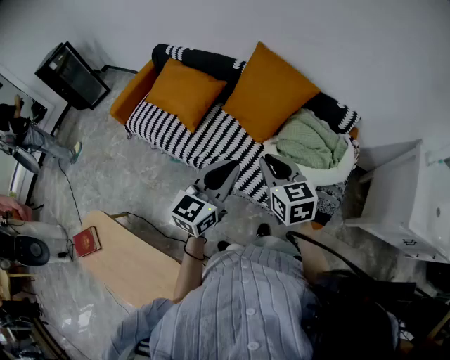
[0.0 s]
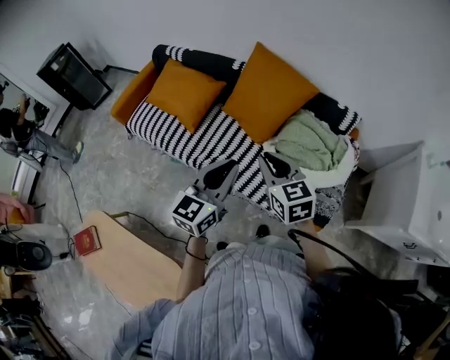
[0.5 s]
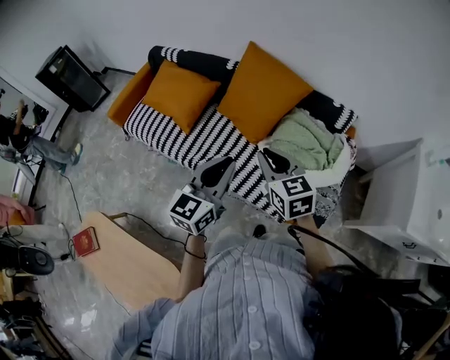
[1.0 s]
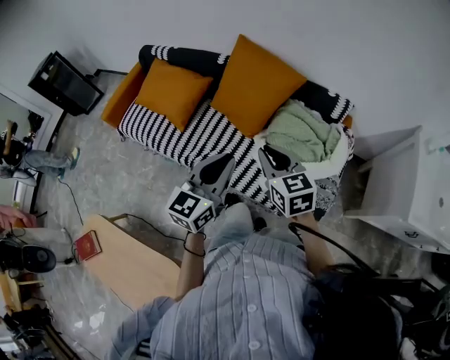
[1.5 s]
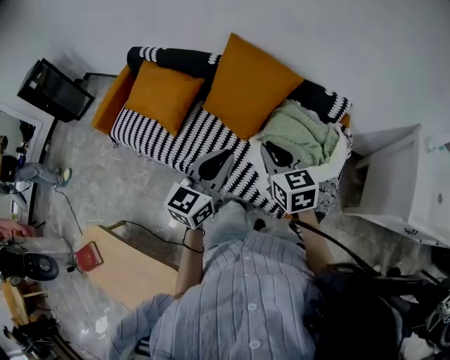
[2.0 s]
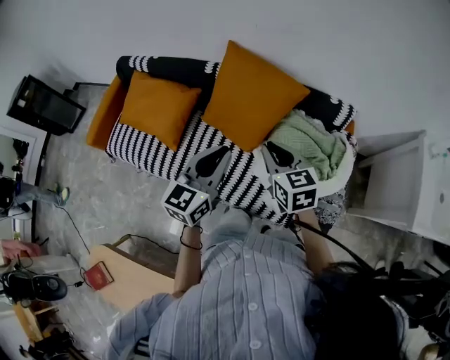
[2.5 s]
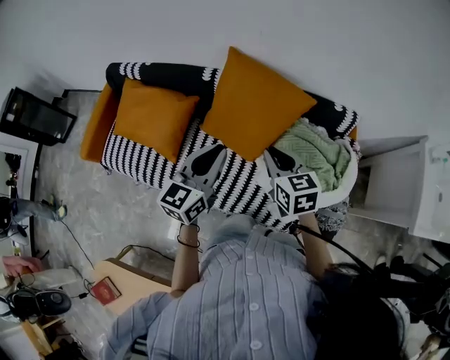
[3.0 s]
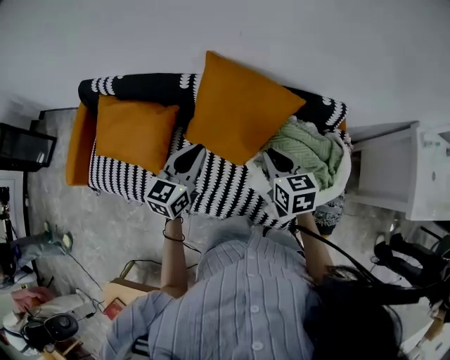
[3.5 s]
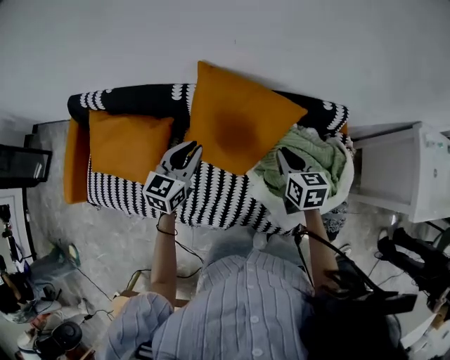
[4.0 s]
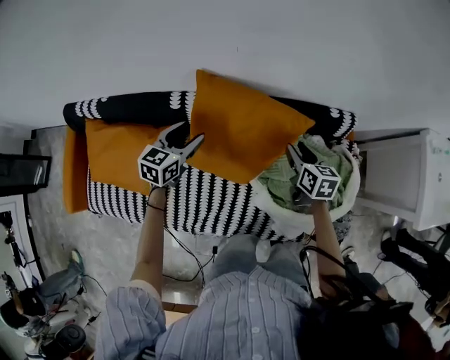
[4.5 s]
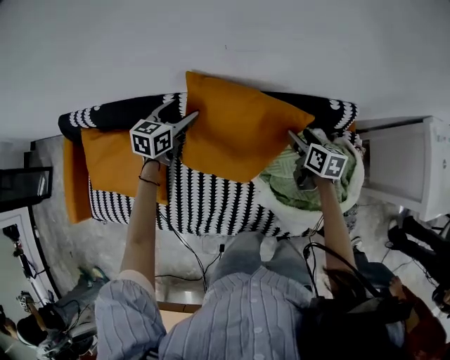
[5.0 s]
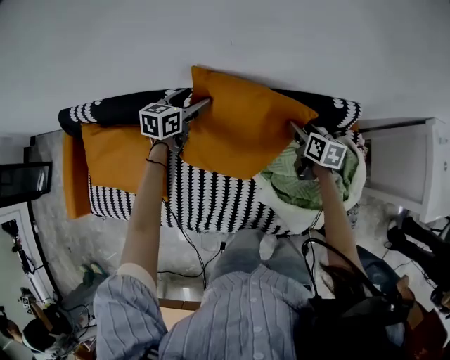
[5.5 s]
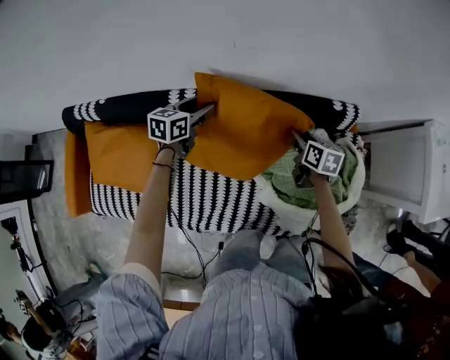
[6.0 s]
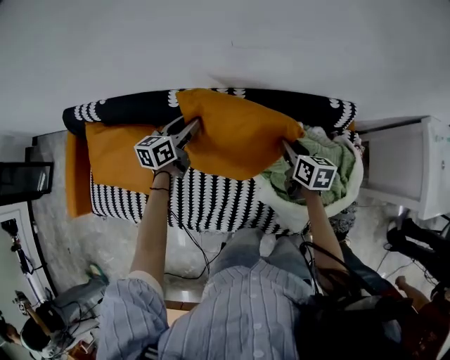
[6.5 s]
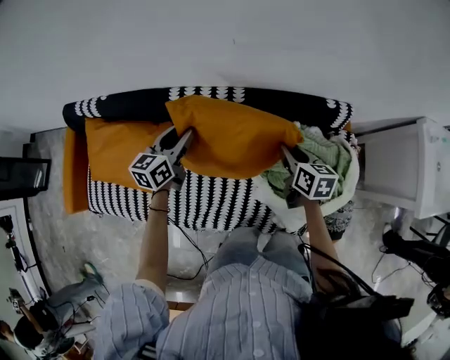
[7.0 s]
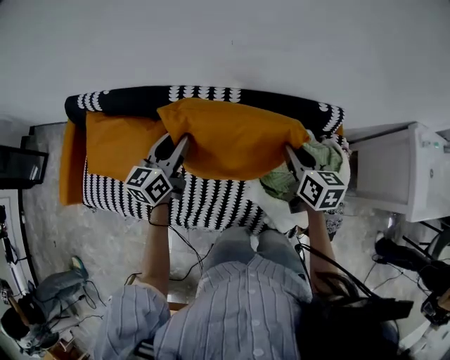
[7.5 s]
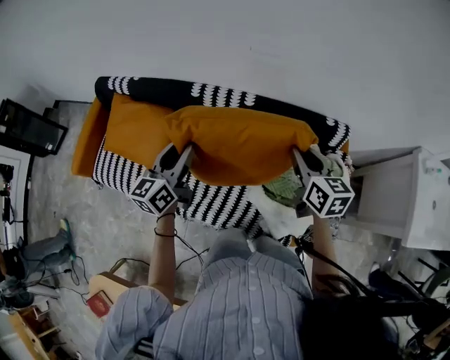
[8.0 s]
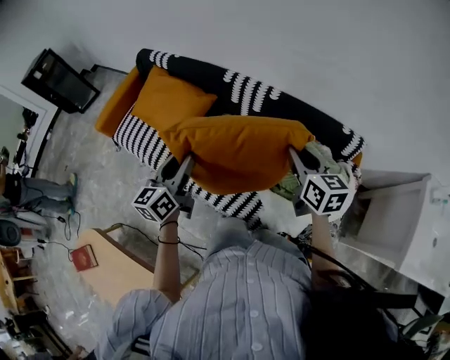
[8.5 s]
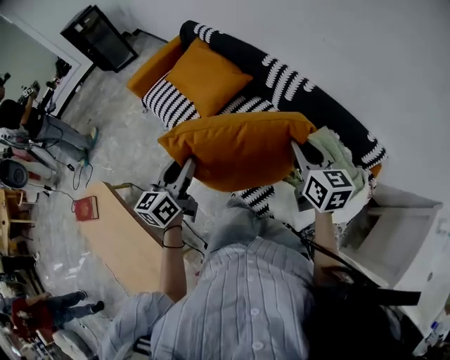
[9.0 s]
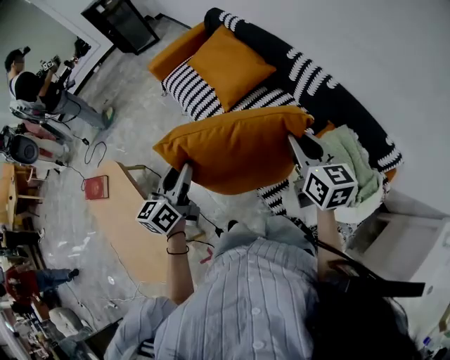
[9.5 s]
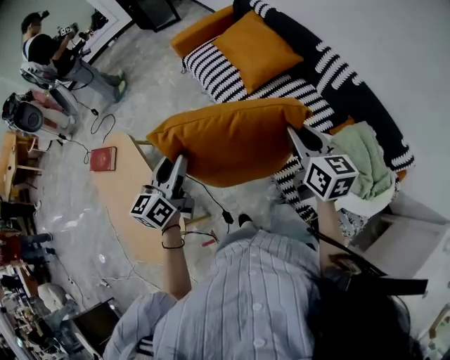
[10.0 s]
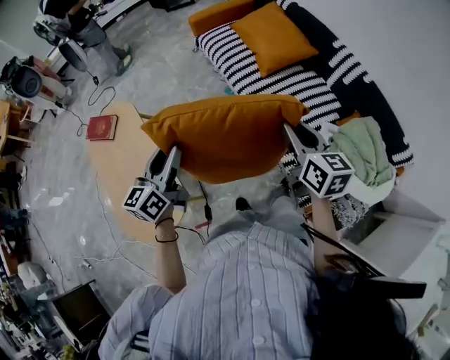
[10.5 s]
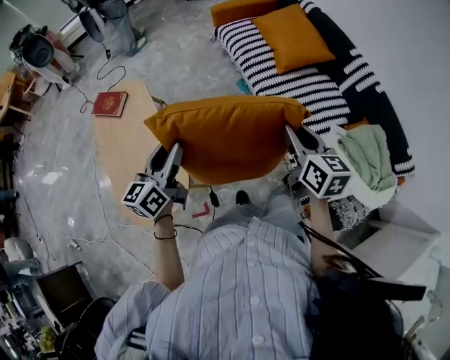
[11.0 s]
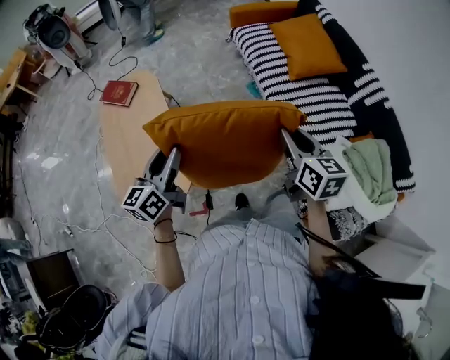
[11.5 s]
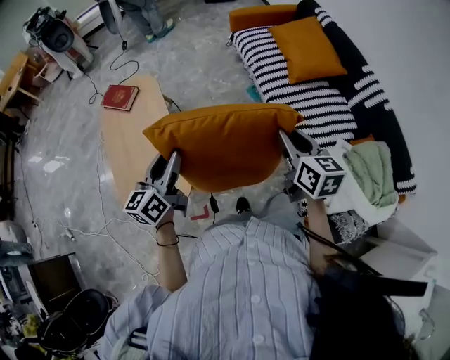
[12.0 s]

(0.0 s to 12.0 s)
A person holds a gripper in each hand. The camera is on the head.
0.0 s - 2.0 s: The grippers both shift forward and to the right by roughly 10 cm.
2.0 s - 4.0 s: The left gripper goes approximately 40 cm forward and to the left, and changes its angle by about 20 degrees. The right gripper is displaced forward and downward by approximately 30 cm, and swivels about 30 degrees.
4.0 s - 6.0 s: The grippers both shift forward and downward by approximately 20 cm. The left gripper opens its fingers; the right gripper swivels approximately 20 degrees, and opens, then closes once more.
6.0 s - 8.0 s: The right gripper travels upward and backward by about 25 cm, and swivels approximately 30 degrees; the left gripper is displaced backward and upward by roughly 35 cm, and swivels roughly 40 degrees.
8.0 s - 10.0 s: The right gripper shifts by roughly 35 cm, and swivels about 50 degrees; the left gripper moves approximately 50 cm, and swivels approximately 50 degrees.
10.0 s - 12.0 s: The left gripper travels to the left and backward by roughly 30 cm, while the right gripper goes roughly 25 cm to the left.

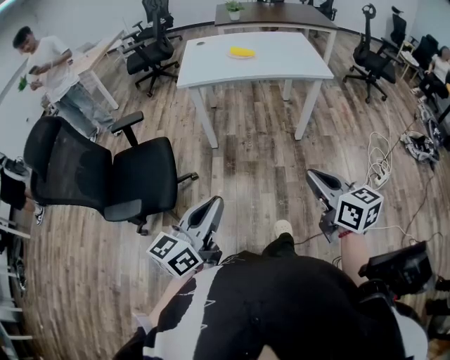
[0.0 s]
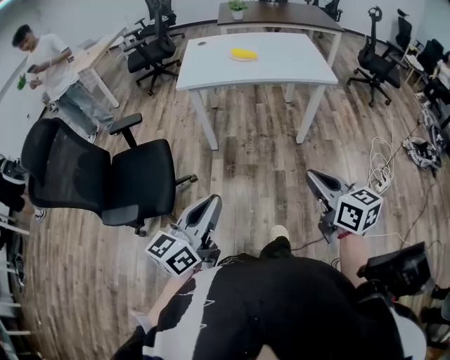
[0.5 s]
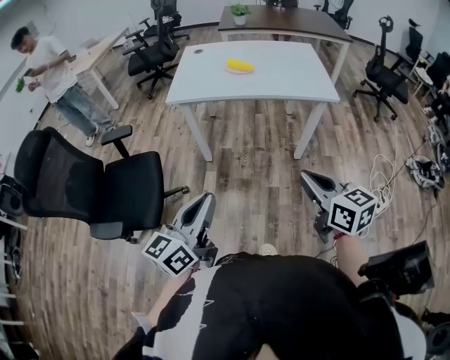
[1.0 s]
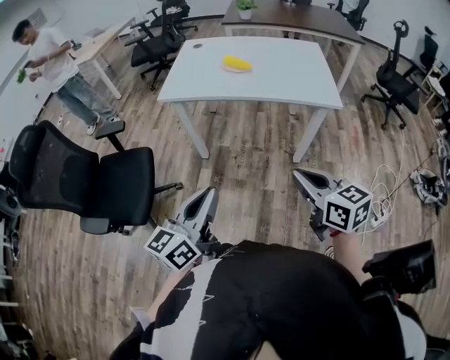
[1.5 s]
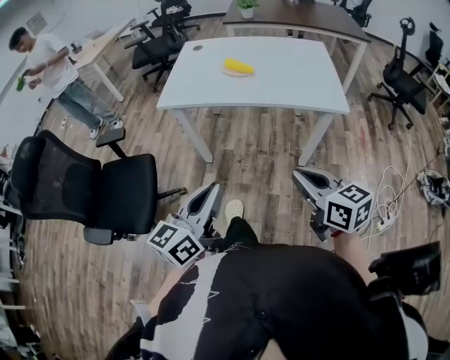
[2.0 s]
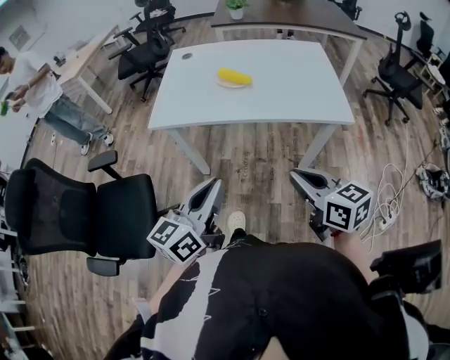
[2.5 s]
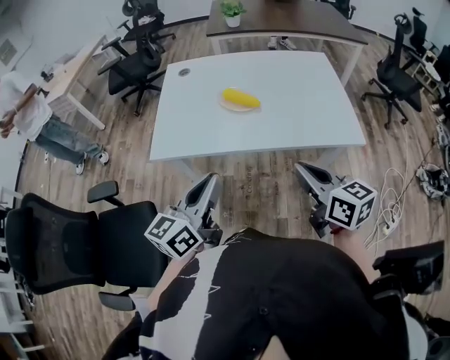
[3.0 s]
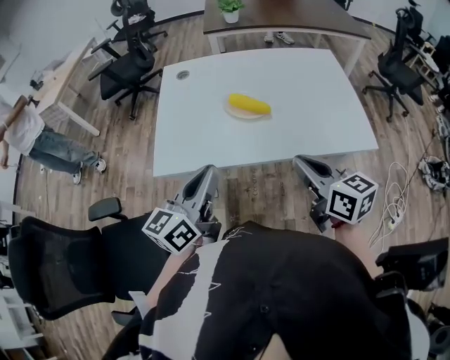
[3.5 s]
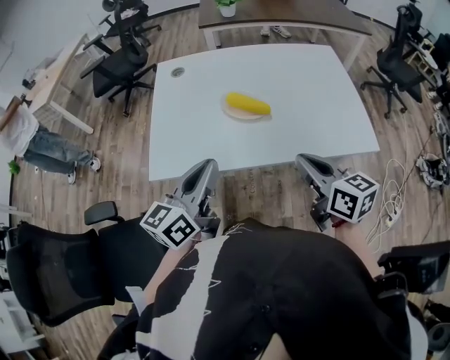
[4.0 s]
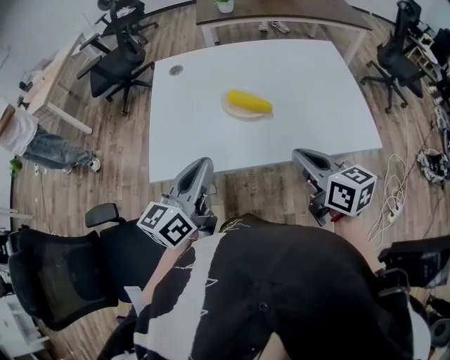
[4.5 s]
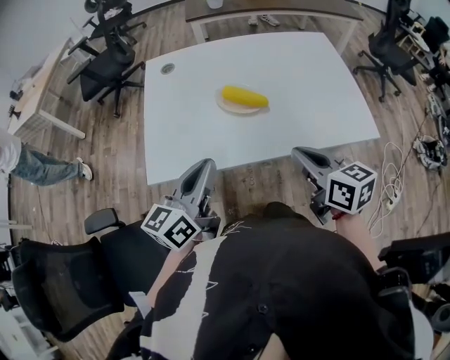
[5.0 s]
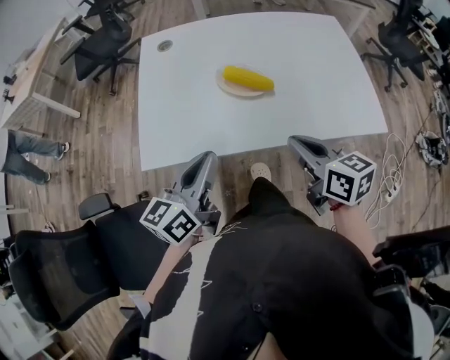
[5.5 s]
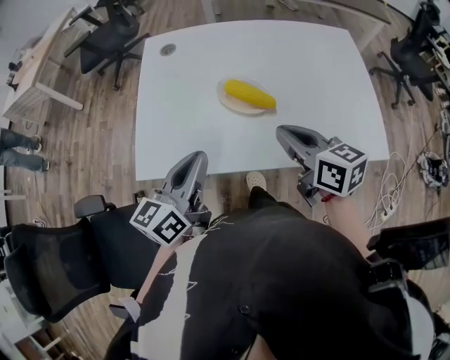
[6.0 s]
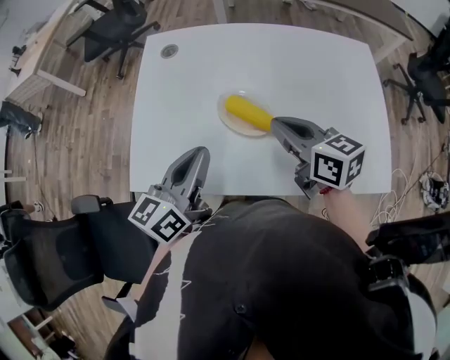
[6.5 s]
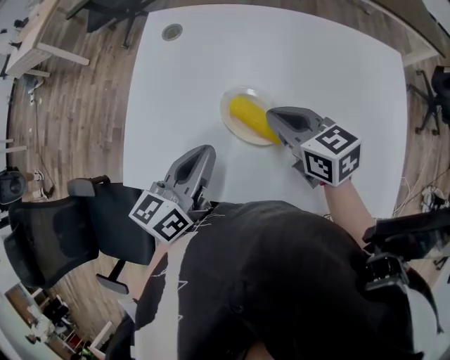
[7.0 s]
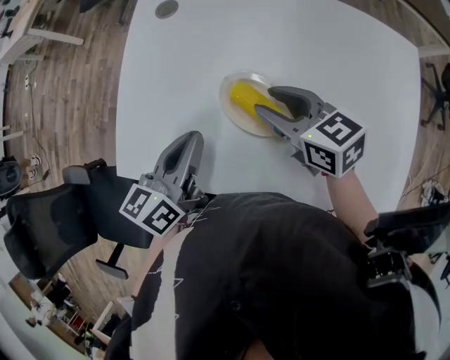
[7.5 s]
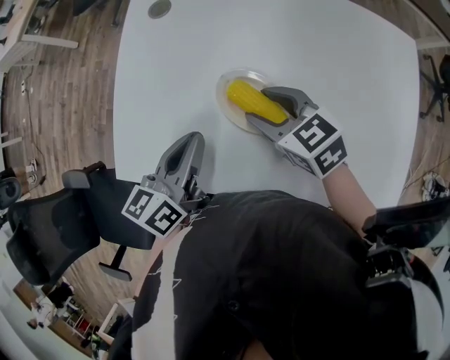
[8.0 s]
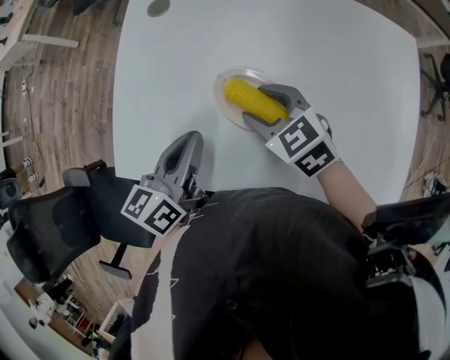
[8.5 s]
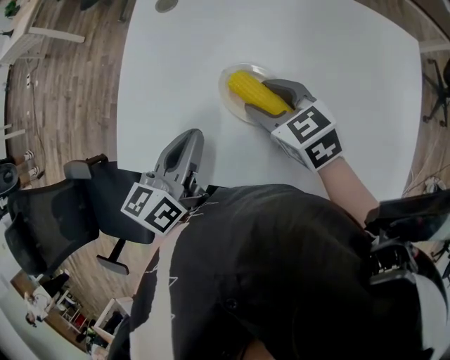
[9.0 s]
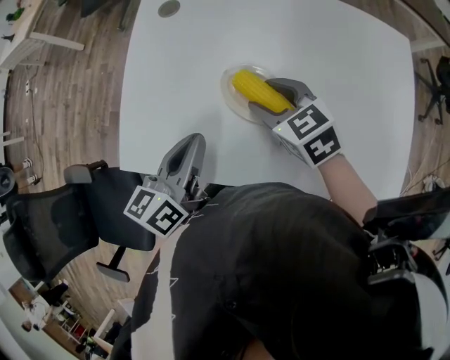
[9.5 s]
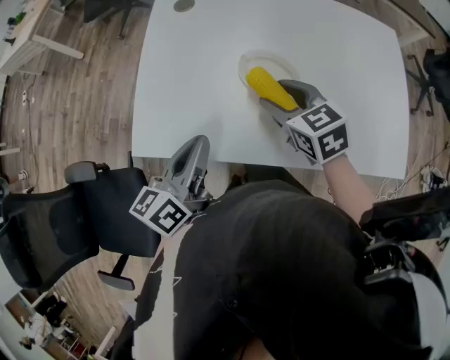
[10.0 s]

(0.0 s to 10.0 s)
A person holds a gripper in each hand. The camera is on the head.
0.0 s - 2.0 s: The grippers both shift forward and to the right by roughly 35 cm.
2.0 s - 4.0 s: Both grippers move forward, approximately 40 cm.
4.0 s - 6.0 s: The right gripper shifts roughly 10 cm forward; the left gripper travels forward and downward by roughly 10 cm.
6.0 s - 8.0 s: Both grippers move forward and downward, about 20 cm. The right gripper changes its angle by roughly 40 degrees, and opens up.
8.0 s - 10.0 s: The left gripper heads backward and to the left, covering about 10 cm, while the right gripper is displaced backward by approximately 5 cm.

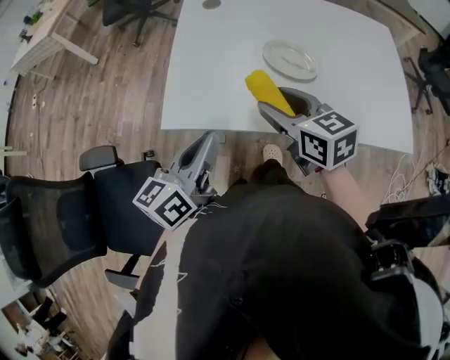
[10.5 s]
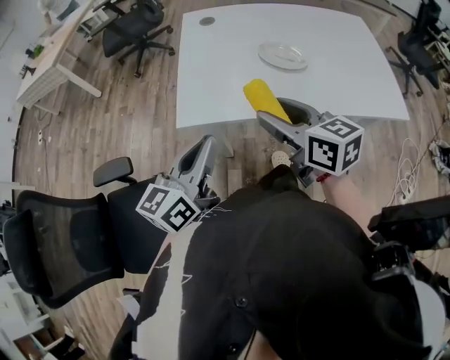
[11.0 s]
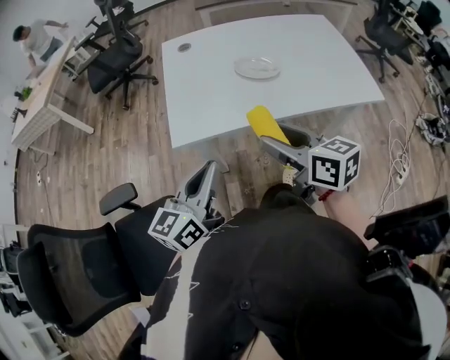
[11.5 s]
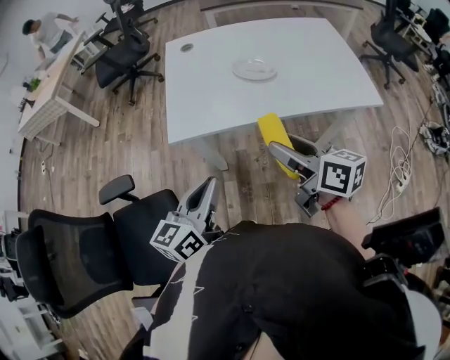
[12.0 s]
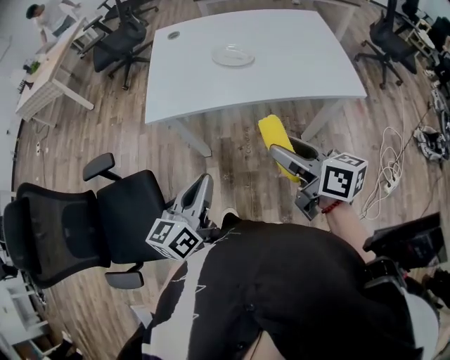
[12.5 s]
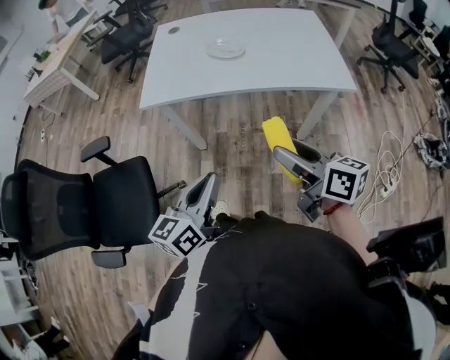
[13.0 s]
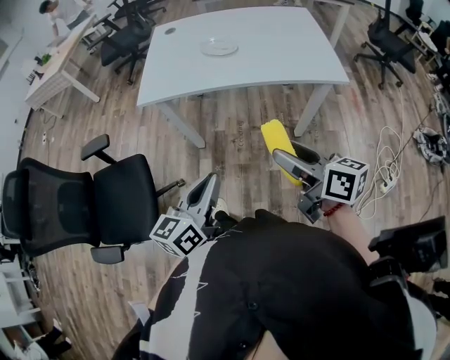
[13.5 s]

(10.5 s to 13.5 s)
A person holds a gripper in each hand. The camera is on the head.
10.5 s - 12.0 s: The two grippers go about 20 cm backward. The right gripper turns by approximately 30 degrees.
12.0 s - 13.5 s: Both grippers move backward and to the right, about 25 cm.

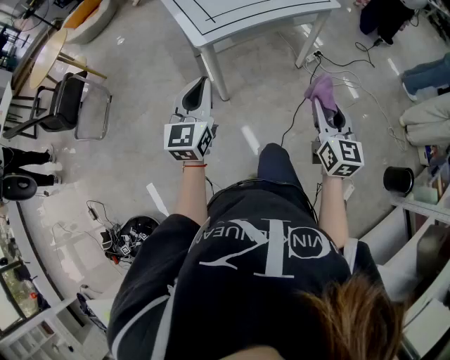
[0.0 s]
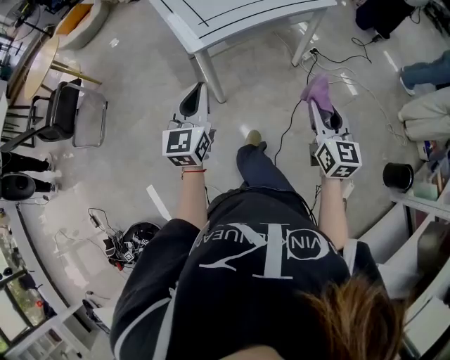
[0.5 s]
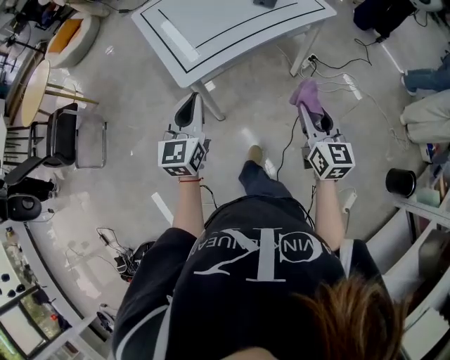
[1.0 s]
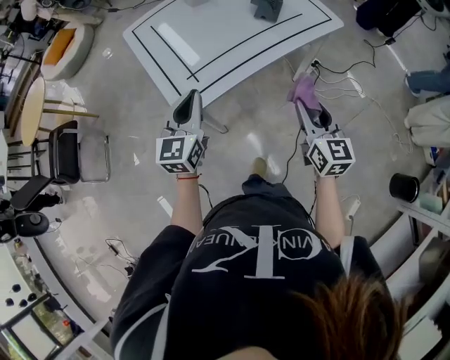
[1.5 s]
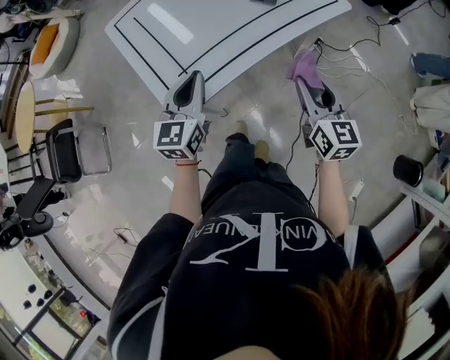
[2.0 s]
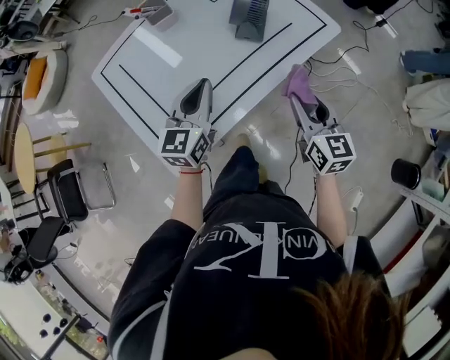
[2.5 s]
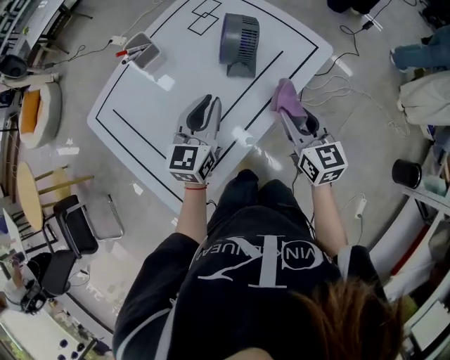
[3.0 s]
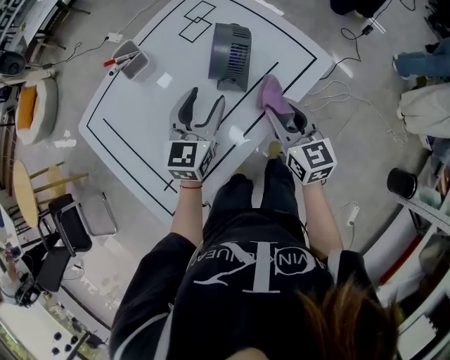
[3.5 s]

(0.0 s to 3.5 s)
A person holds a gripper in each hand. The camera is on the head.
0.0 s - 2.0 s: Both grippers travel together forward, roughly 35 cm.
2.0 s - 3.5 s: The left gripper shifts some 30 cm forward and to the right, and opens up; the right gripper travels forward by some 25 cm.
